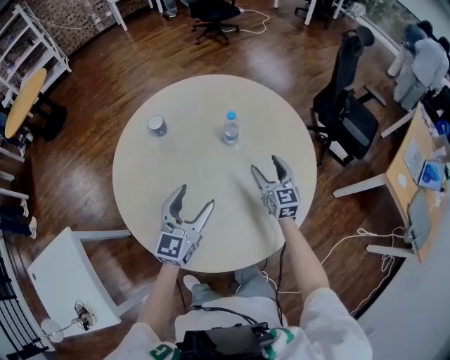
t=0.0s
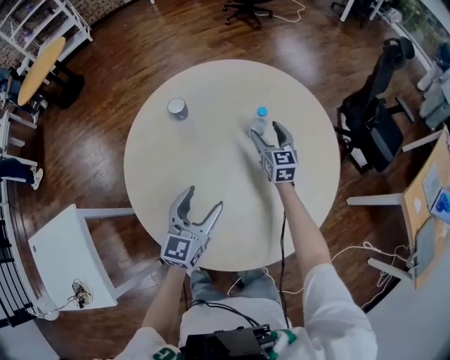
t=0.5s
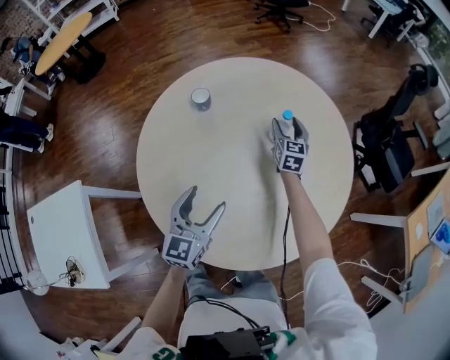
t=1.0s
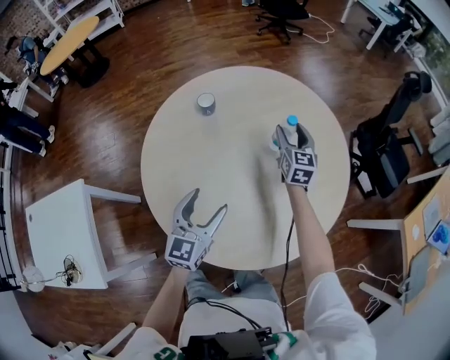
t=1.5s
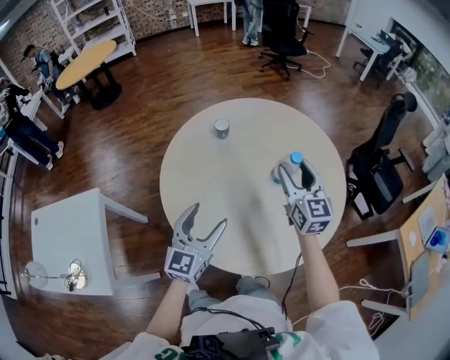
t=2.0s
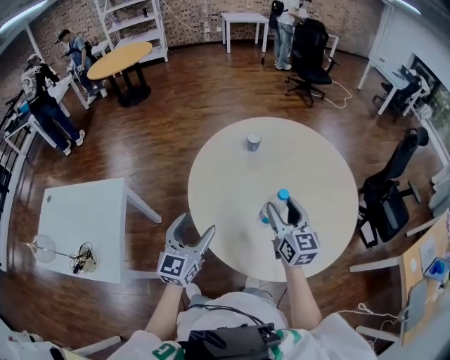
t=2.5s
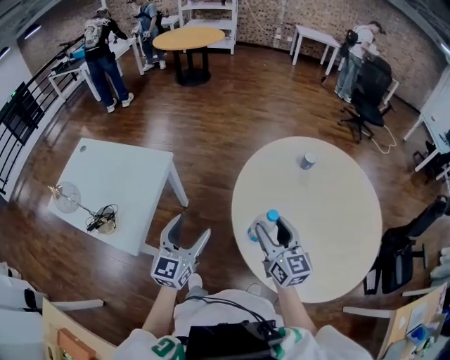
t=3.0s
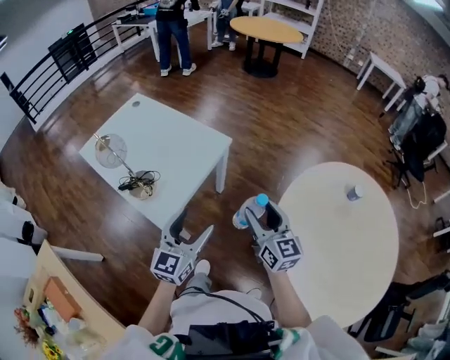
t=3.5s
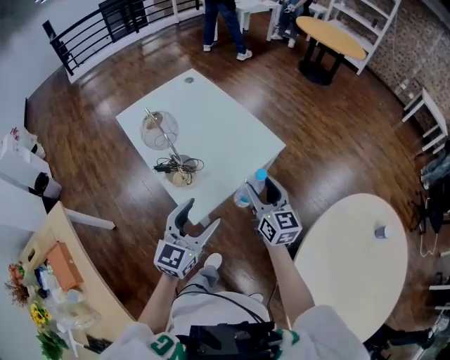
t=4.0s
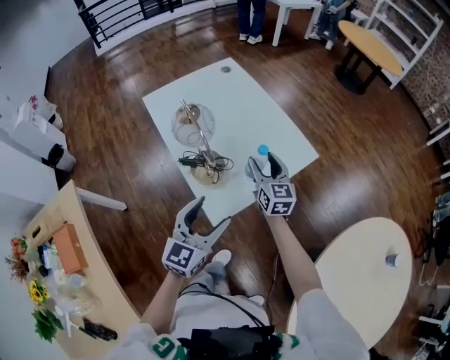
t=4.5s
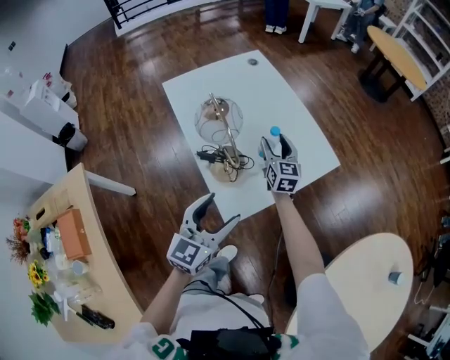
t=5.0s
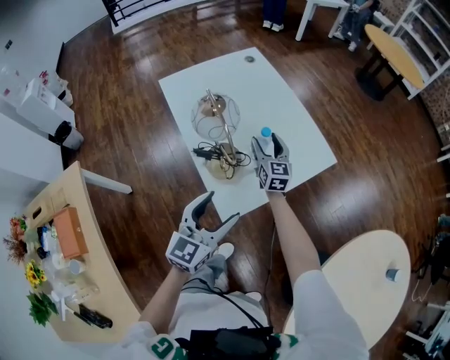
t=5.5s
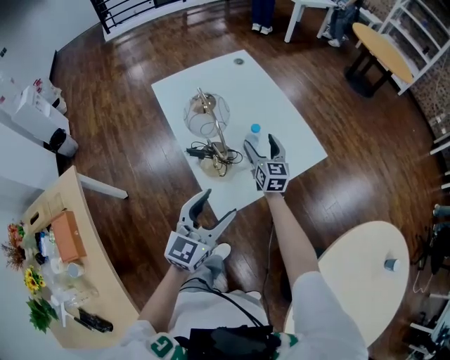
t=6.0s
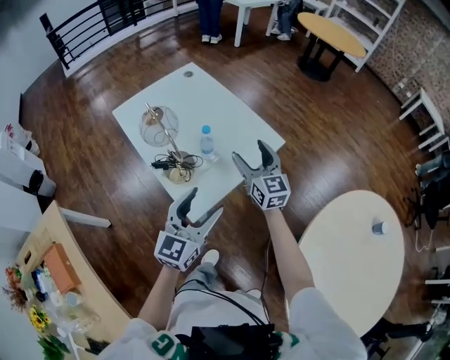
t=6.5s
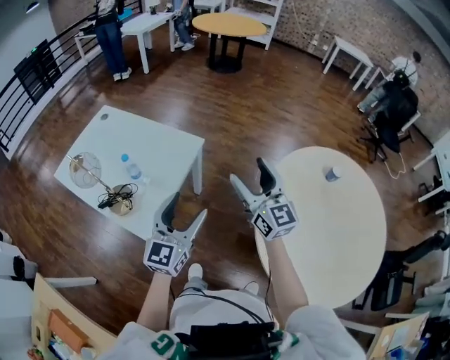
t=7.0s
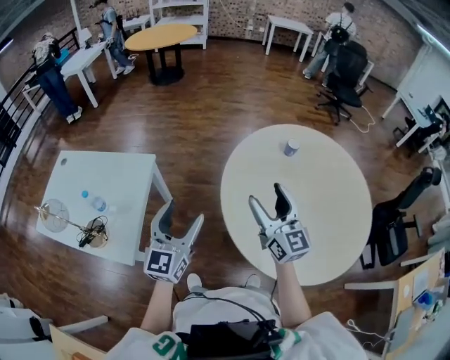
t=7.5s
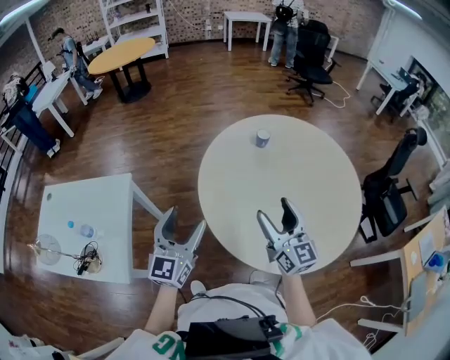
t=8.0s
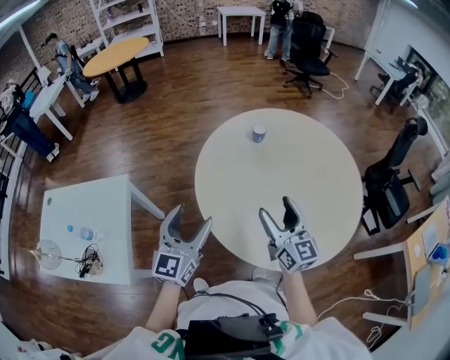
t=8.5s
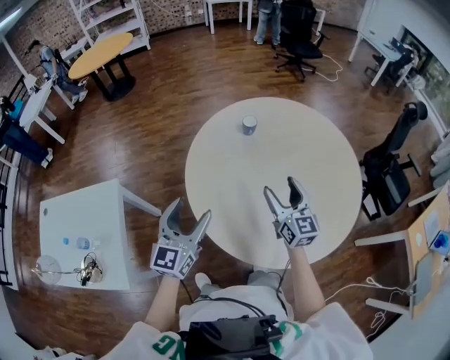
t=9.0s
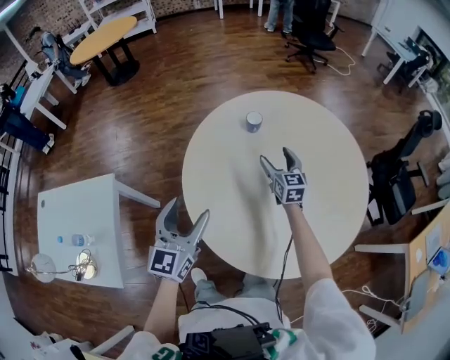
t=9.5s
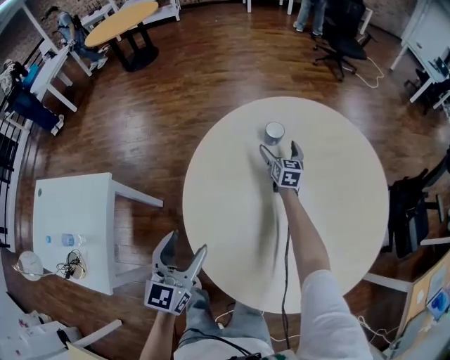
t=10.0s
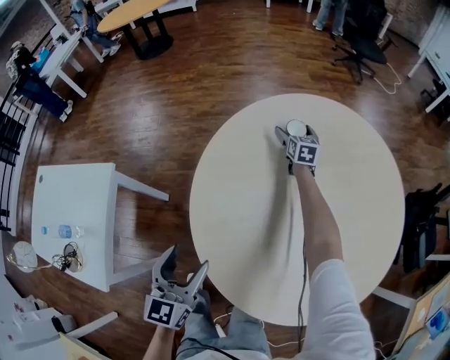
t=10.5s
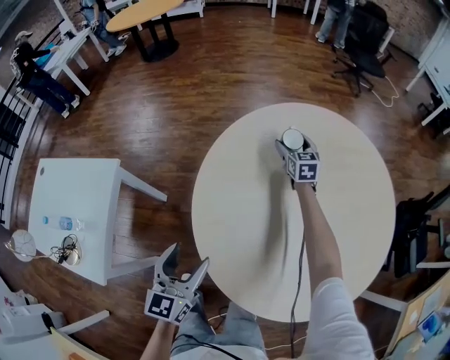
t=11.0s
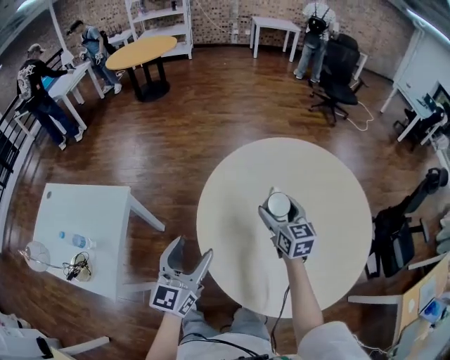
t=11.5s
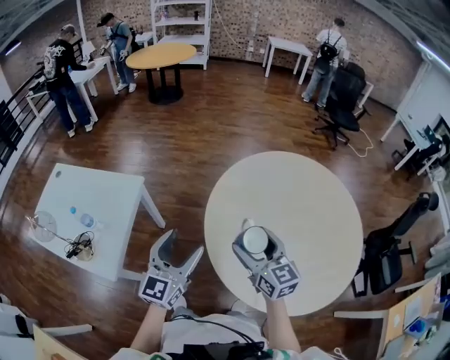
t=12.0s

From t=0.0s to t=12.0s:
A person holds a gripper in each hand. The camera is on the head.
From t=0.0s to t=2.0s: The right gripper moves upward and to the left, approximately 25 cm. Meanwhile the left gripper moves to the left and backward, about 15 cm.
From t=2.0s to t=4.0s: Both grippers are carried roughly 70 cm. The right gripper rotates some 70 degrees; the left gripper swivels about 60 degrees.
From t=4.0s to t=6.0s: The left gripper moves to the left, about 5 cm; the right gripper shifts some 30 cm forward, to the left and downward.
From t=6.0s to t=8.0s: The two grippers travel together, about 60 cm. The right gripper turns by approximately 60 degrees. Meanwhile the left gripper turns by about 50 degrees.
From t=8.0s to t=10.0s: The left gripper heads downward, forward and to the right, covering roughly 20 cm. Meanwhile the right gripper travels forward and downward by roughly 50 cm, swivels about 30 degrees, and opens.
From t=10.0s to t=12.0s: The left gripper is displaced upward, backward and to the left by about 20 cm; the right gripper heads backward, upward and to the left, covering roughly 50 cm, and rotates roughly 30 degrees.

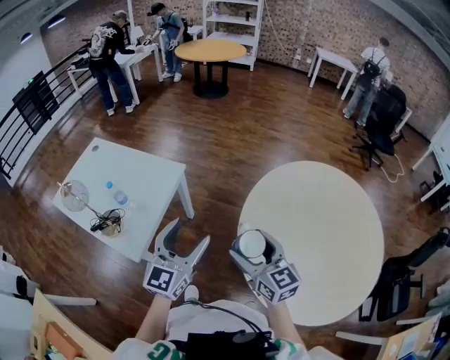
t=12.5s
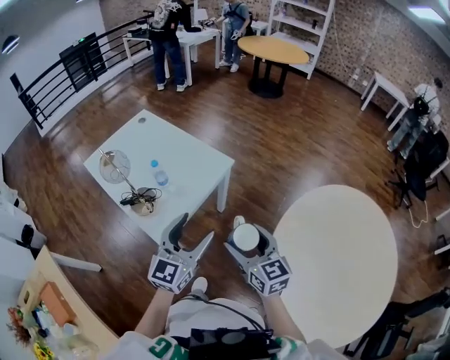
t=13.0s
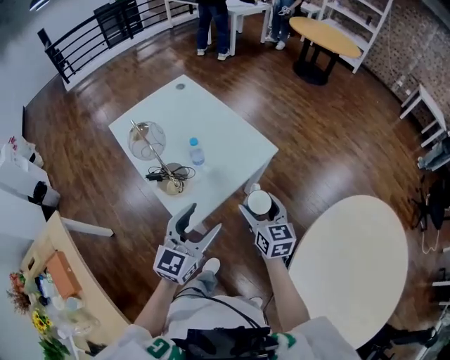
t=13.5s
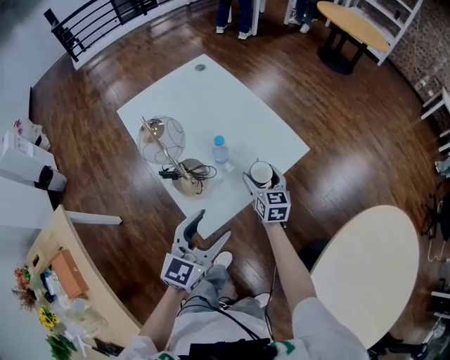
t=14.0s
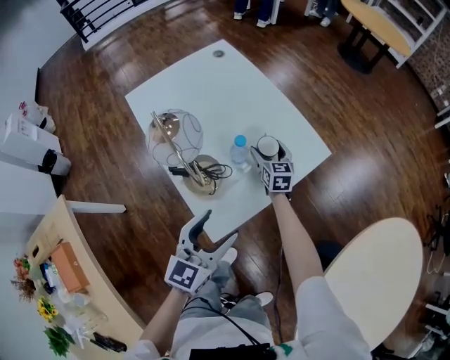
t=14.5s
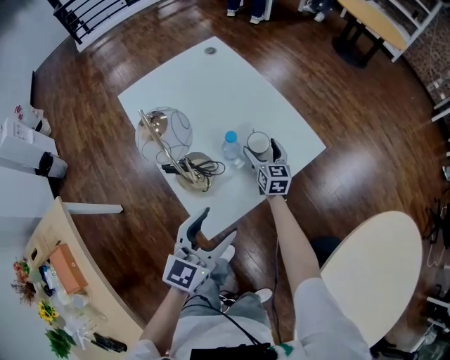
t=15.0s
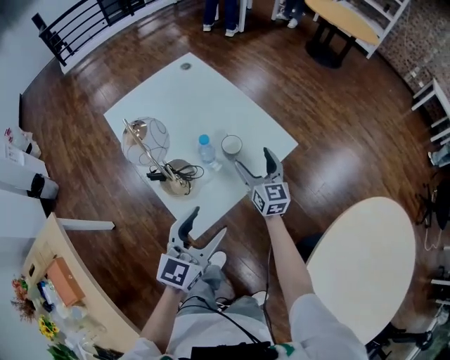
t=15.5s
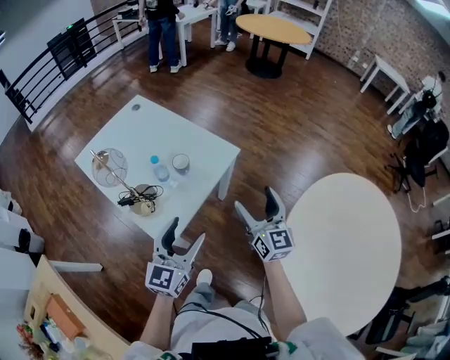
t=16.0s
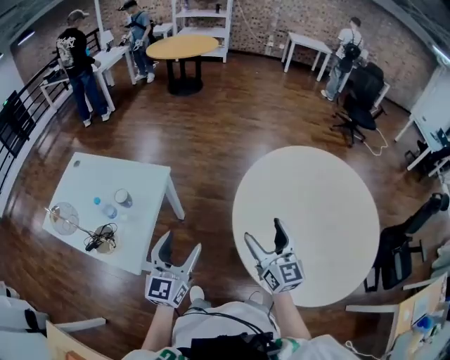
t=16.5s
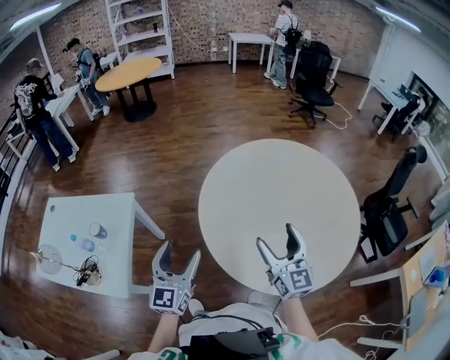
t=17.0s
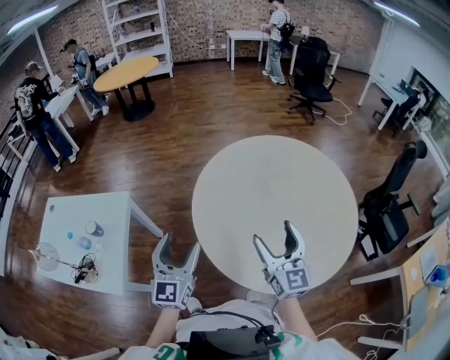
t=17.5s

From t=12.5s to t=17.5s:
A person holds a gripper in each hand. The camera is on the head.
From t=12.5s to t=15.0s: The left gripper shifts roughly 35 cm to the left, downward and forward, and changes its angle by approximately 30 degrees. The right gripper moves forward, to the left and downward, about 70 cm, and changes its angle by roughly 20 degrees.
From t=15.0s to t=17.5s: The pair of grippers is taken about 60 cm. The left gripper changes its angle by approximately 40 degrees. Meanwhile the right gripper changes its angle by about 60 degrees.

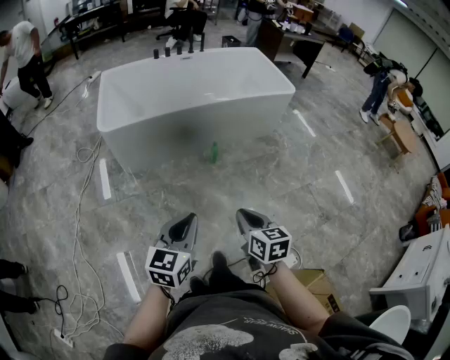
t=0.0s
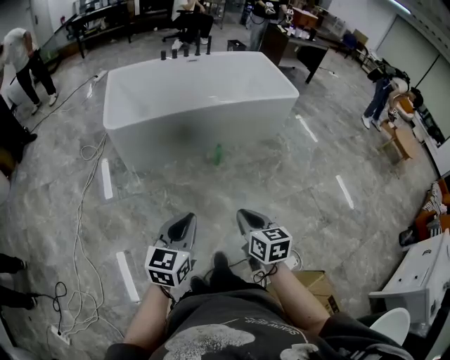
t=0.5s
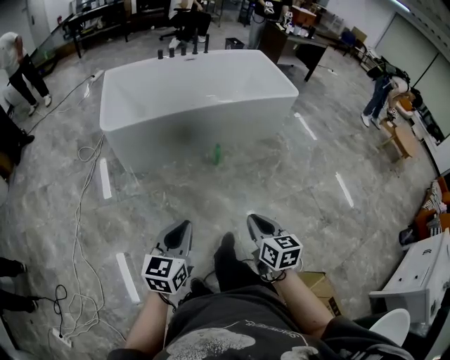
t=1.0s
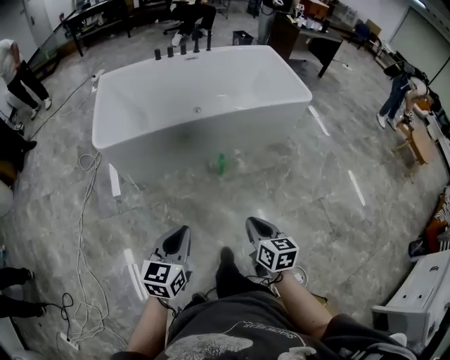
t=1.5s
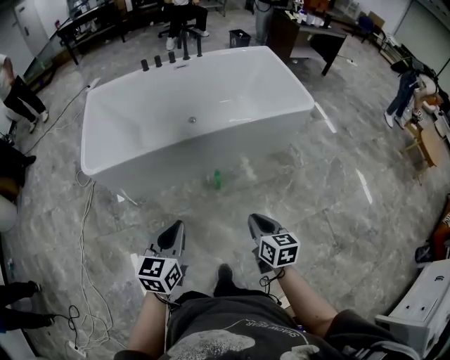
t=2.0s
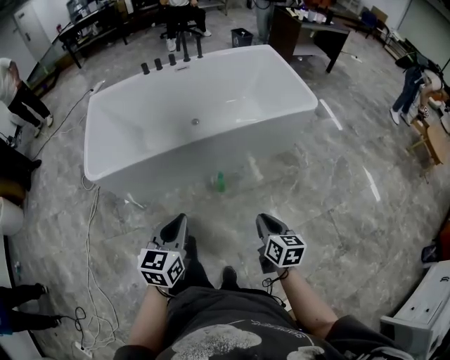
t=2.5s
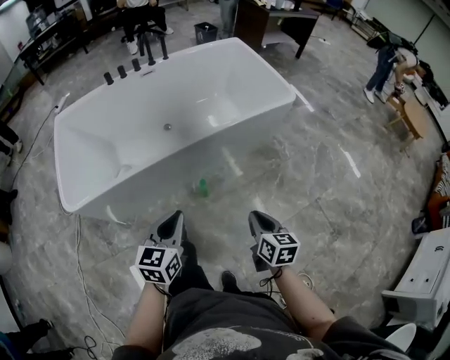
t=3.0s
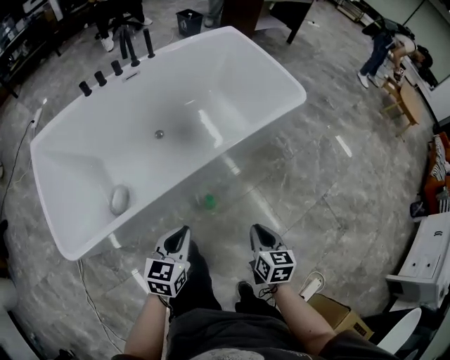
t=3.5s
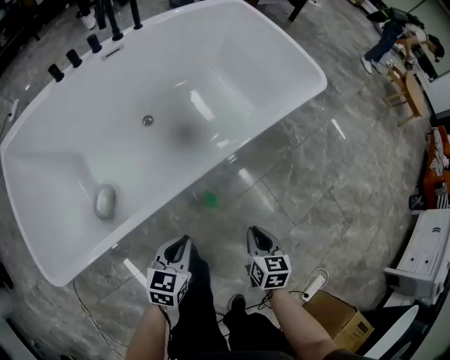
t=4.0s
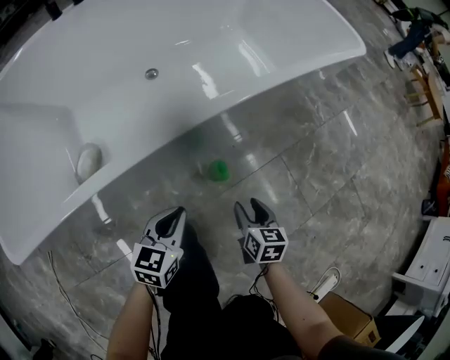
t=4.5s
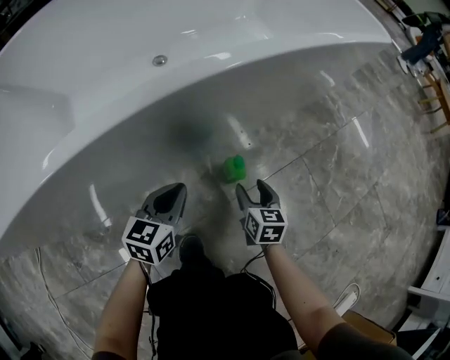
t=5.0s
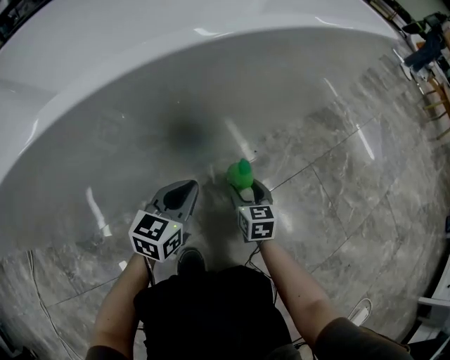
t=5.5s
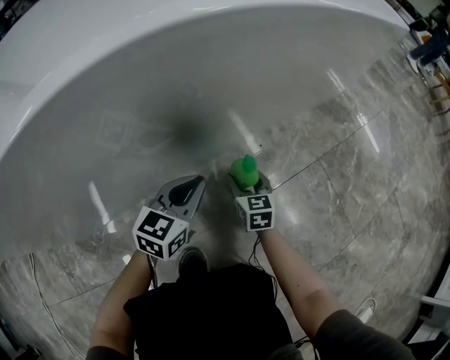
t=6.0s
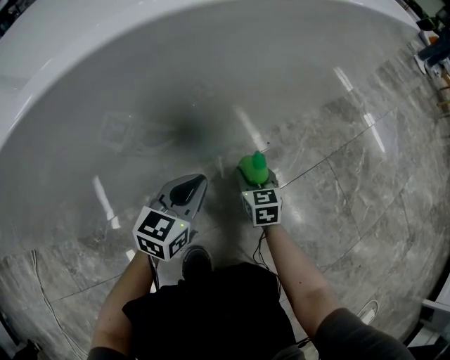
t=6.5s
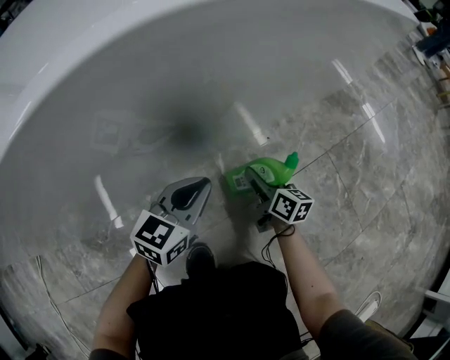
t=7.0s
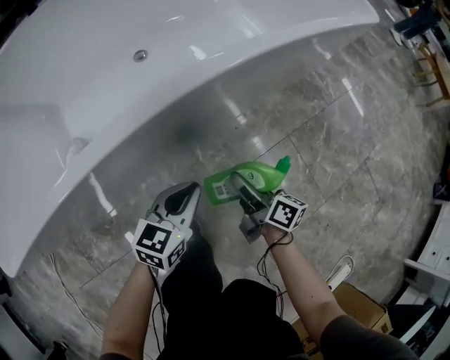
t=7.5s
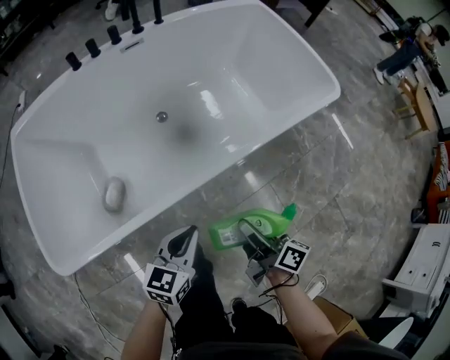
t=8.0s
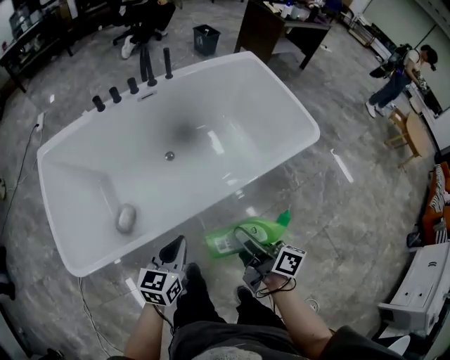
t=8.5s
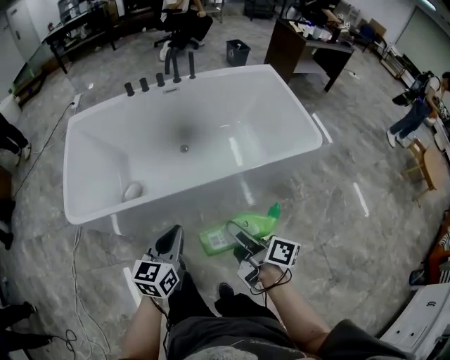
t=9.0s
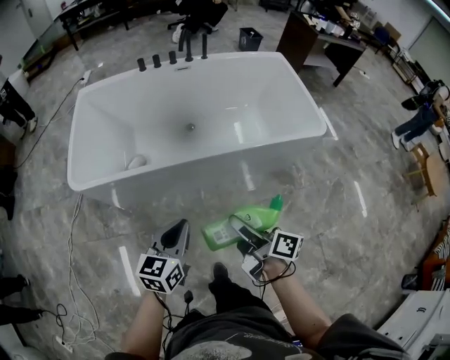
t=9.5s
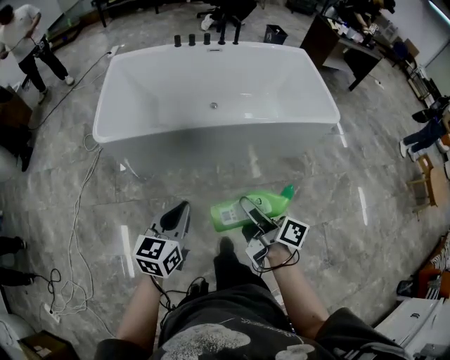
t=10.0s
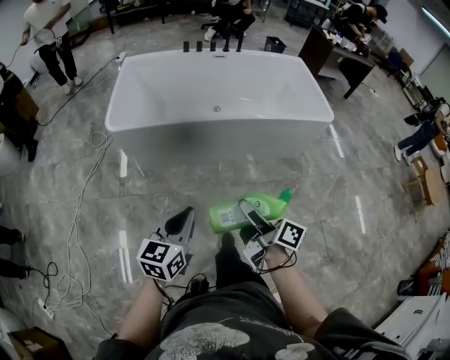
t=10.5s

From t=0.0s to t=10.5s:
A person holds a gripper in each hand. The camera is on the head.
From t=0.0s to t=2.0s: The left gripper heads forward, covering approximately 30 cm. Meanwhile the right gripper goes approximately 30 cm forward and to the right.
From t=2.0s to t=4.0s: The right gripper ends up approximately 35 cm from where it was, and swivels roughly 30 degrees. The left gripper changes place by some 40 cm, and rotates some 30 degrees.
From t=4.0s to t=6.5s: Both grippers travel together downward, some 40 cm. The right gripper changes its angle by roughly 20 degrees, and opens its fingers.
From t=6.5s to t=8.5s: The two grippers go roughly 60 cm upward. The right gripper rotates around the line of its fingers by approximately 50 degrees, clockwise from behind.
From t=8.5s to t=10.5s: The two grippers travel together, backward, about 50 cm. The left gripper rotates some 20 degrees.
